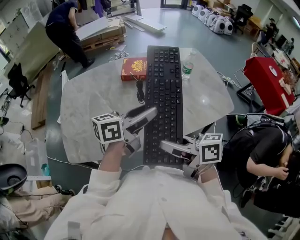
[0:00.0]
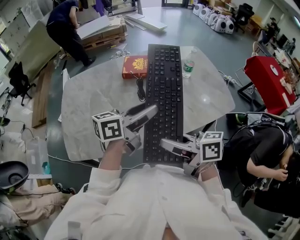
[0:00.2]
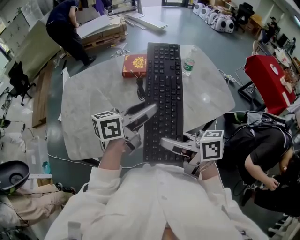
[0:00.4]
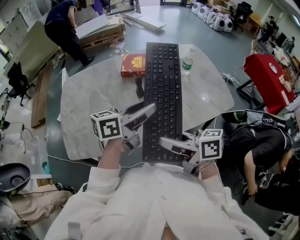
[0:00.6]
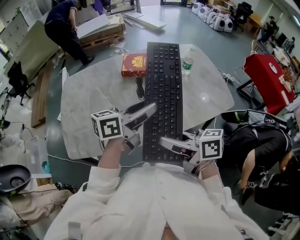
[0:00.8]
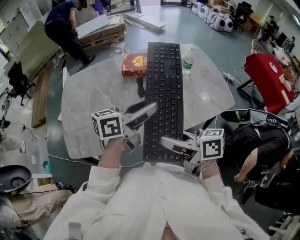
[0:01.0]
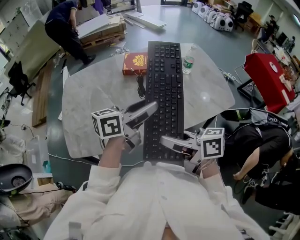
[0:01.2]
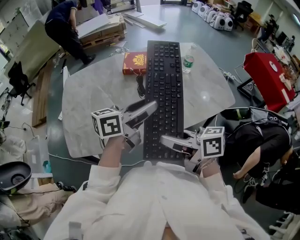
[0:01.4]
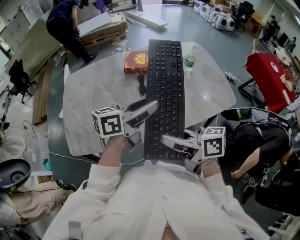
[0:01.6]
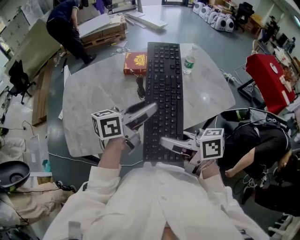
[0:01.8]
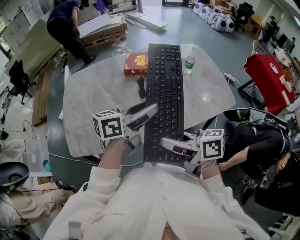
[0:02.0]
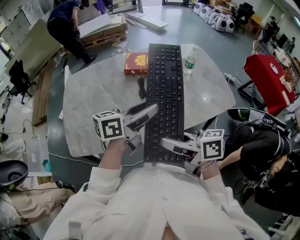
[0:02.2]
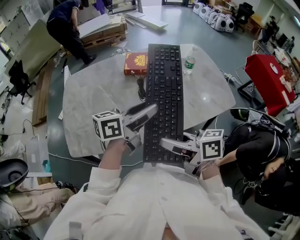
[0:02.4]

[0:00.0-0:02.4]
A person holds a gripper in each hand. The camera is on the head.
0:00.0 to 0:02.4: Both grippers stay put.

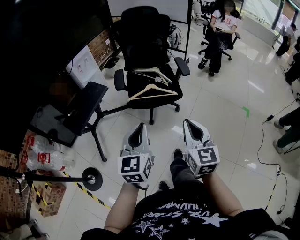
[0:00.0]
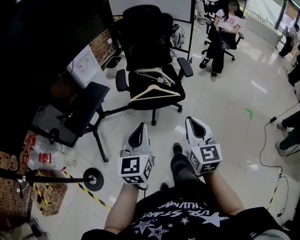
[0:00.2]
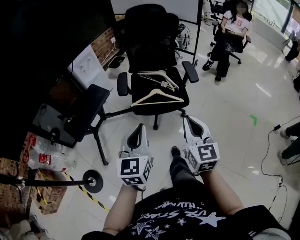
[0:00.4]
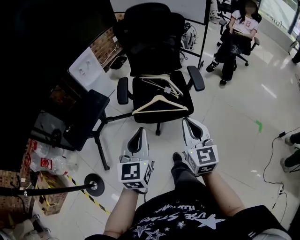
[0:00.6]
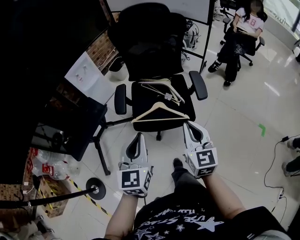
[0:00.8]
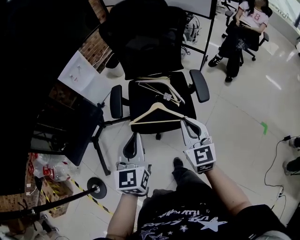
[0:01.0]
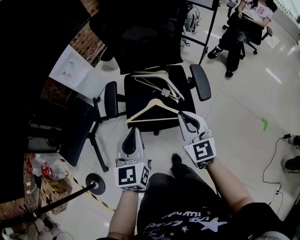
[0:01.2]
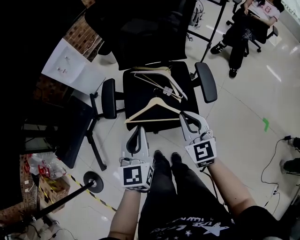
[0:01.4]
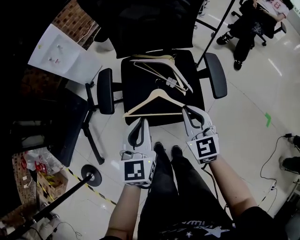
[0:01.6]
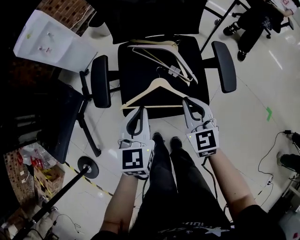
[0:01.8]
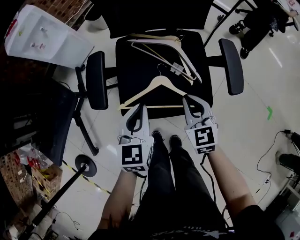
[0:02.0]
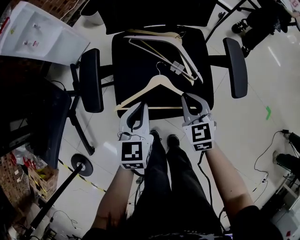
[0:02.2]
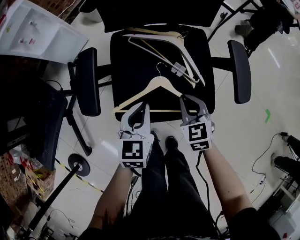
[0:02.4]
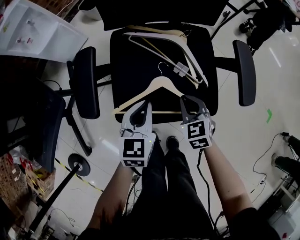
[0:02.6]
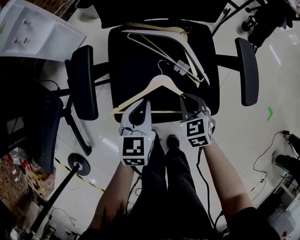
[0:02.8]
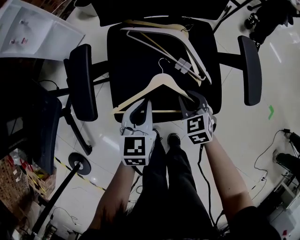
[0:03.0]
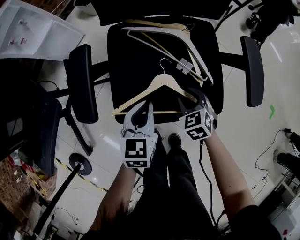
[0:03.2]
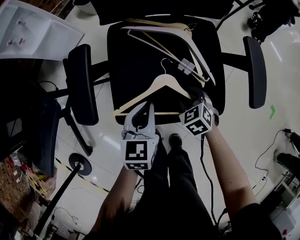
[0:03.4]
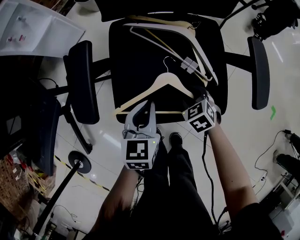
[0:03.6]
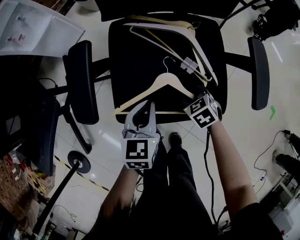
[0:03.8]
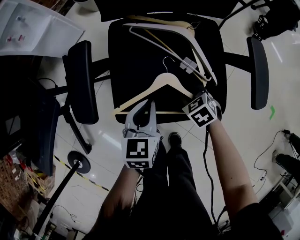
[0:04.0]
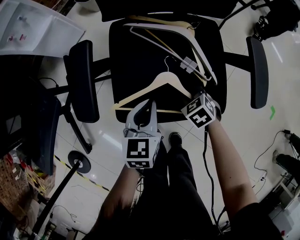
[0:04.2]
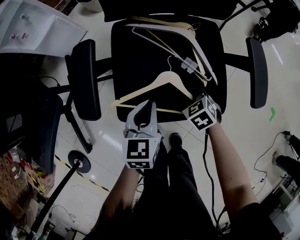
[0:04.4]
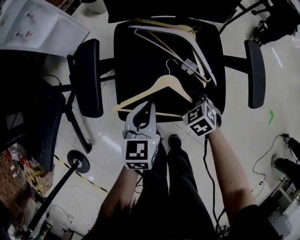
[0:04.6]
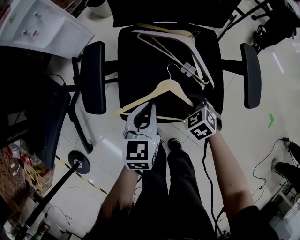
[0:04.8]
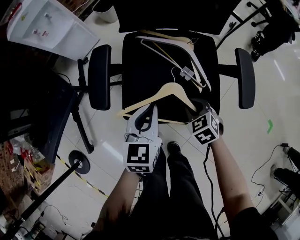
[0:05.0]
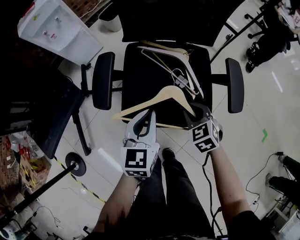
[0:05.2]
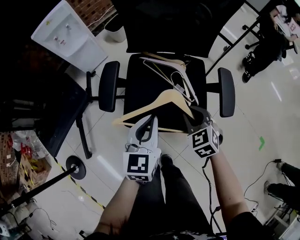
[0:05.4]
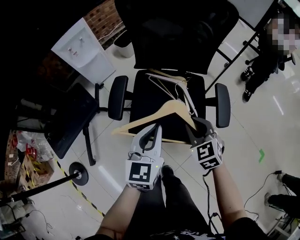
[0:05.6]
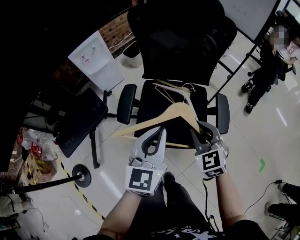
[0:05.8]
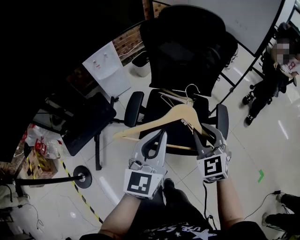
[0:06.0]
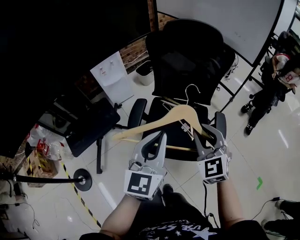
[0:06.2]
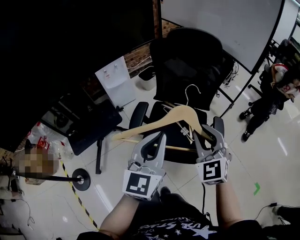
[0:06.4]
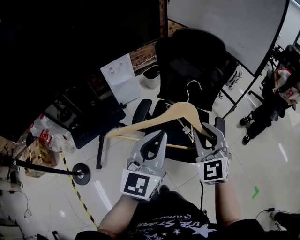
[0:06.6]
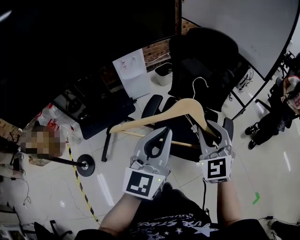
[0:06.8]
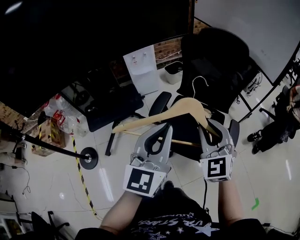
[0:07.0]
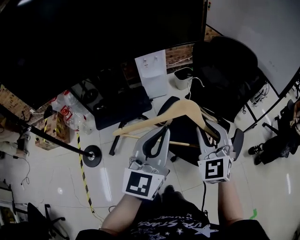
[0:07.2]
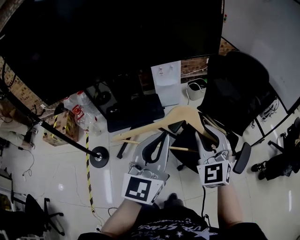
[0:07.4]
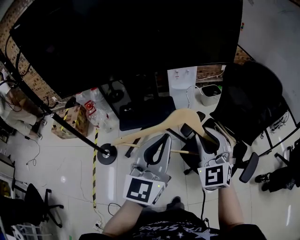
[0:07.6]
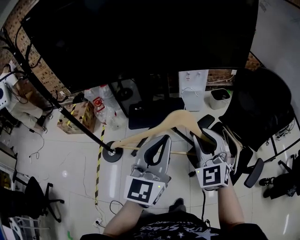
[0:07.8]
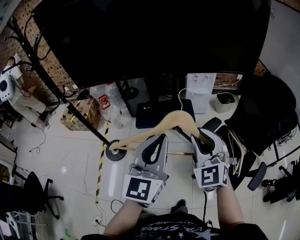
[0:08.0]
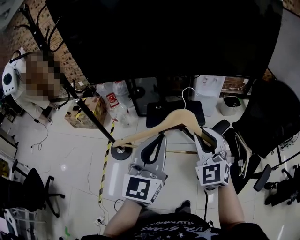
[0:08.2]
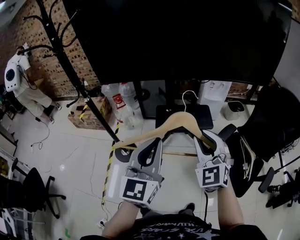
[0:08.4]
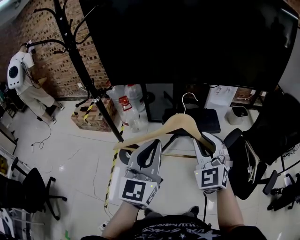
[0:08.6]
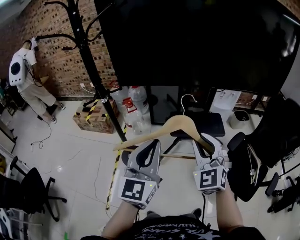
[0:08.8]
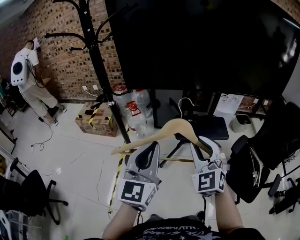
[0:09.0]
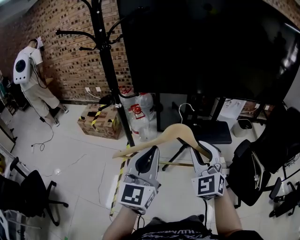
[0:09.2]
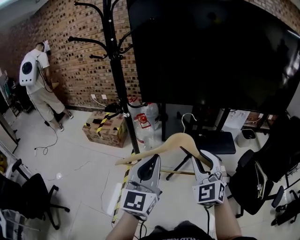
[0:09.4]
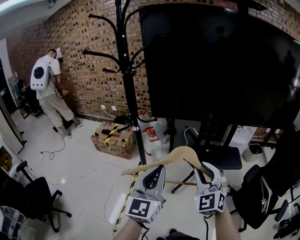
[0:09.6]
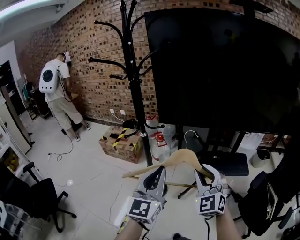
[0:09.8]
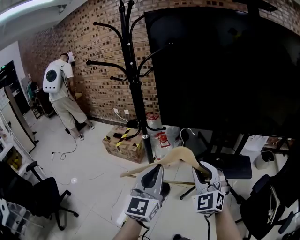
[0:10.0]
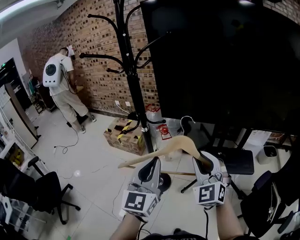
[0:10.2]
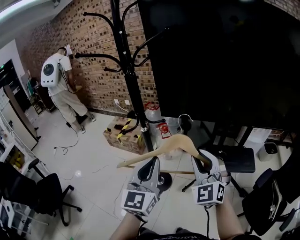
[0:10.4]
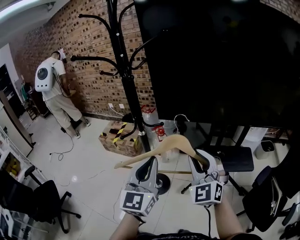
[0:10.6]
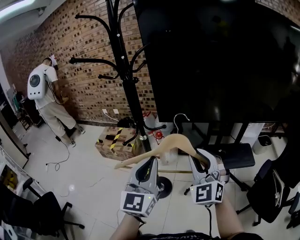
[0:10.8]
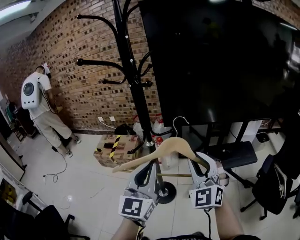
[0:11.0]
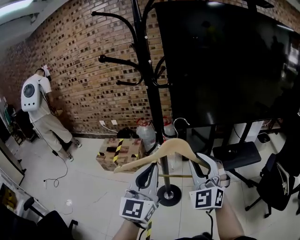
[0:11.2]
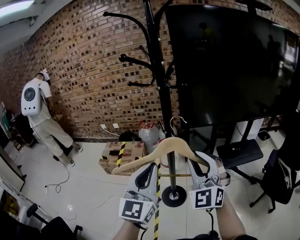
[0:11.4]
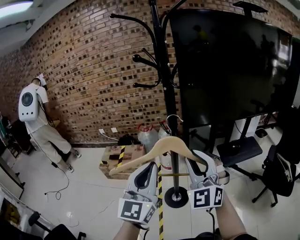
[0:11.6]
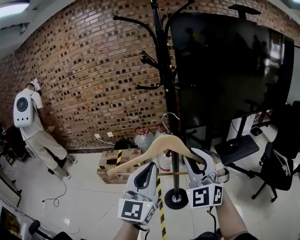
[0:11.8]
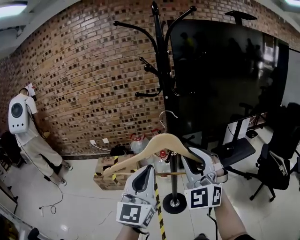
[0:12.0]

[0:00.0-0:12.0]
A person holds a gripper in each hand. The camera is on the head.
0:00.0 to 0:01.6: Both grippers travel together forward and downward, about 40 cm. The right gripper changes its angle by about 20 degrees.
0:01.6 to 0:03.0: Both grippers move downward, approximately 25 cm. The right gripper swivels about 30 degrees.
0:03.0 to 0:04.4: The right gripper is displaced downward by some 5 cm, and opens, then closes again.
0:04.4 to 0:06.0: The two grippers go some 40 cm upward. The left gripper changes its angle by some 30 degrees. Meanwhile the right gripper tilts its fingers about 50 degrees upward.
0:06.0 to 0:07.6: The left gripper changes place by about 25 cm, and swivels about 30 degrees; the right gripper moves some 25 cm, and turns by roughly 40 degrees.
0:07.6 to 0:09.0: Both grippers are carried to the left, roughly 40 cm.
0:09.0 to 0:10.4: The grippers both shift to the left and forward by some 15 cm.
0:10.4 to 0:12.0: Both grippers travel together to the left, roughly 30 cm. The left gripper changes its angle by roughly 20 degrees. Meanwhile the right gripper swivels approximately 30 degrees.

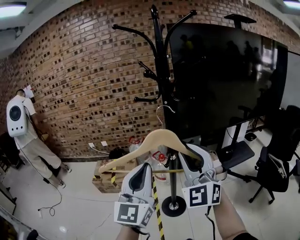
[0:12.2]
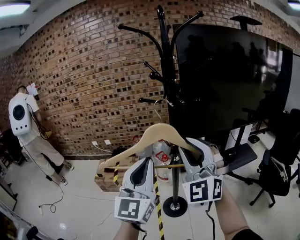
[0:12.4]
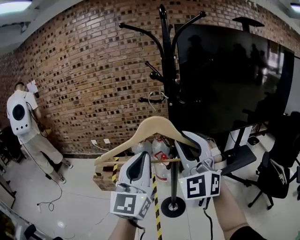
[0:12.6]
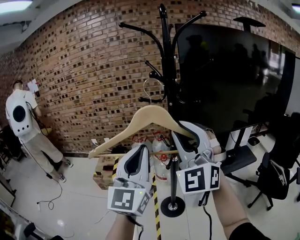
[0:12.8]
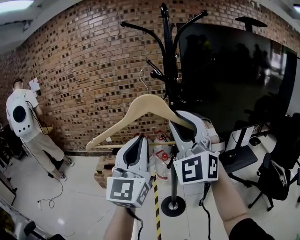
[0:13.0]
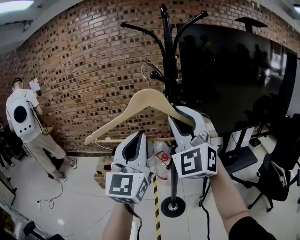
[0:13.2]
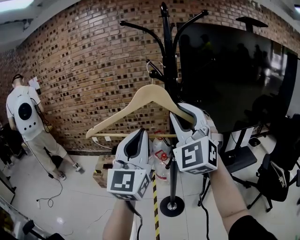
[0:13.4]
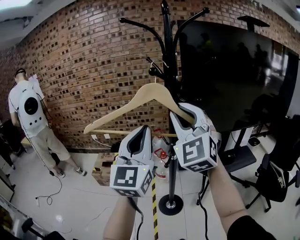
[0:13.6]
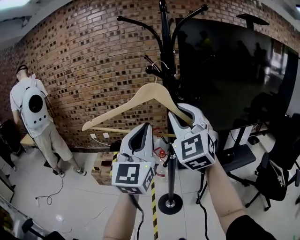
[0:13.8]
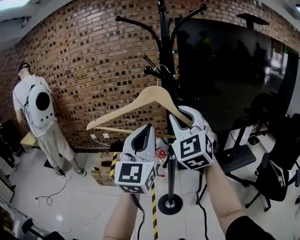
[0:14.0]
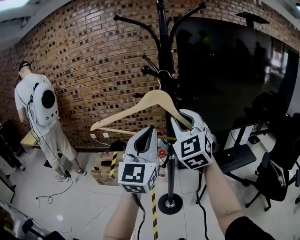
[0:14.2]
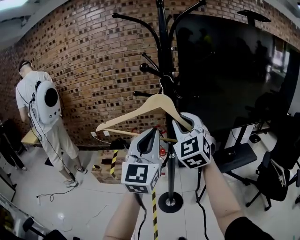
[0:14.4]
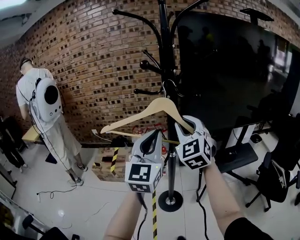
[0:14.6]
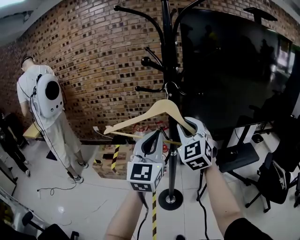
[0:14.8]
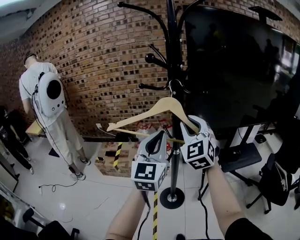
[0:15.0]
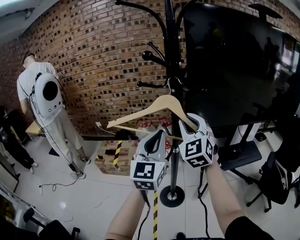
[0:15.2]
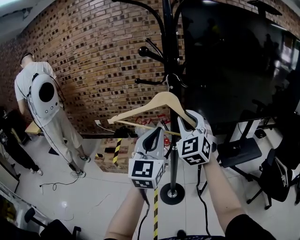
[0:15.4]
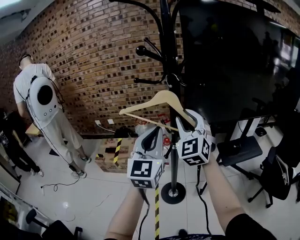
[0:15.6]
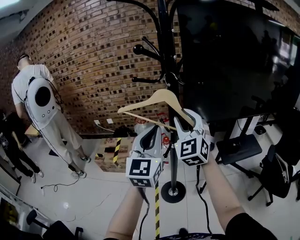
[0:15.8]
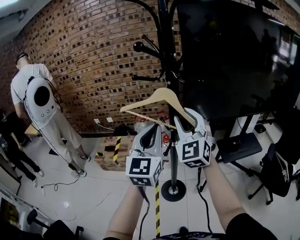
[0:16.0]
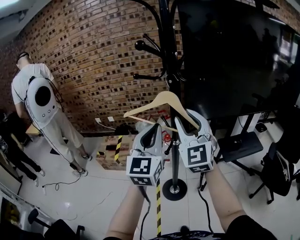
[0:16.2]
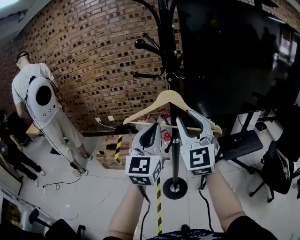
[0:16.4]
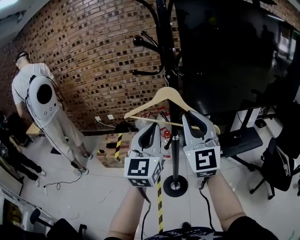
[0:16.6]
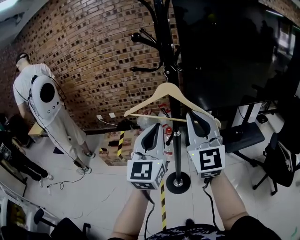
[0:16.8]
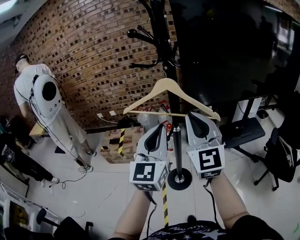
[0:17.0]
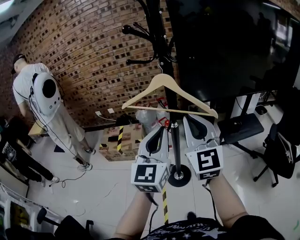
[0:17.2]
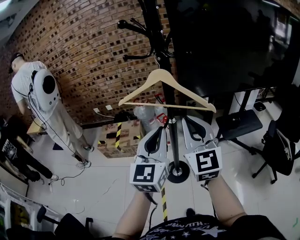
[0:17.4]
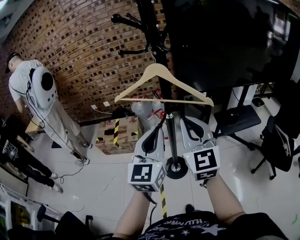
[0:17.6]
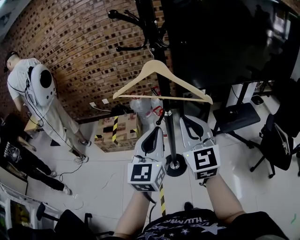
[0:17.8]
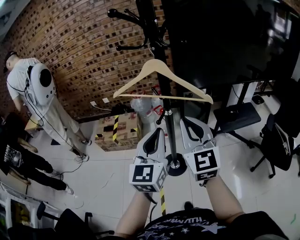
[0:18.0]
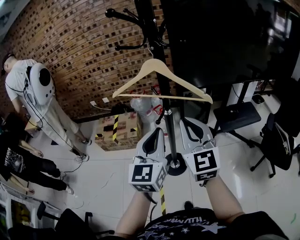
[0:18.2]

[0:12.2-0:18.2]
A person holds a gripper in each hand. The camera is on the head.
0:12.2 to 0:13.8: Both grippers travel together forward and upward, about 10 cm.
0:13.8 to 0:15.2: The right gripper goes approximately 15 cm downward and forward. Meanwhile the left gripper moves downward, about 10 cm.
0:15.2 to 0:16.6: The right gripper travels backward by approximately 10 cm, and turns by about 20 degrees.
0:16.6 to 0:18.2: The two grippers go some 10 cm downward and backward.

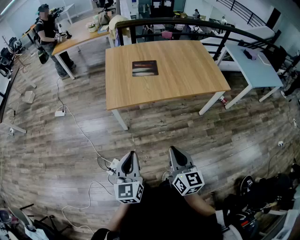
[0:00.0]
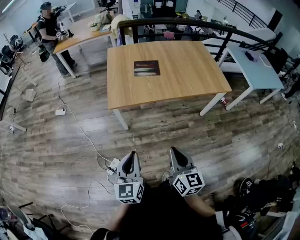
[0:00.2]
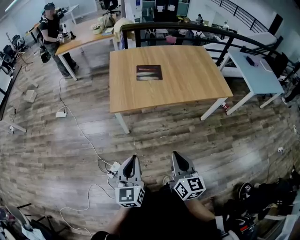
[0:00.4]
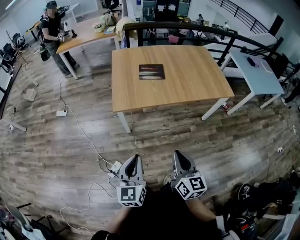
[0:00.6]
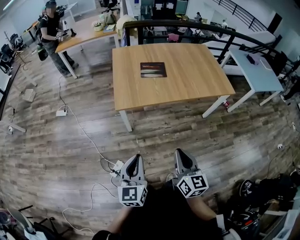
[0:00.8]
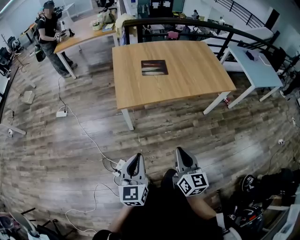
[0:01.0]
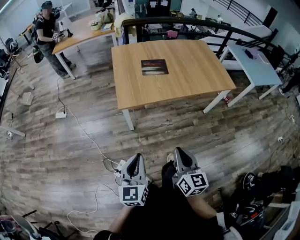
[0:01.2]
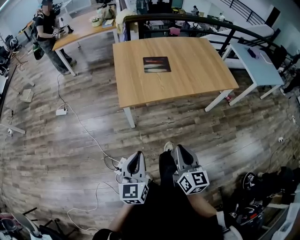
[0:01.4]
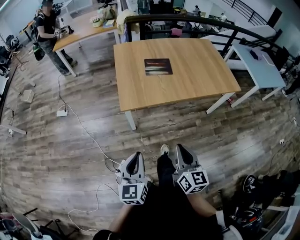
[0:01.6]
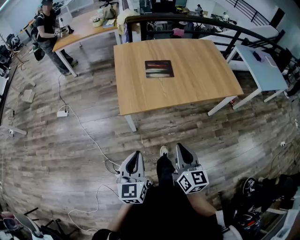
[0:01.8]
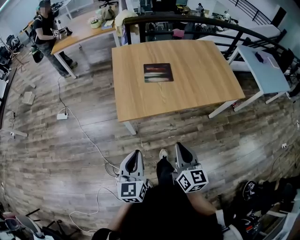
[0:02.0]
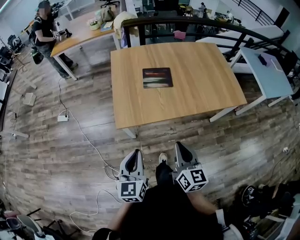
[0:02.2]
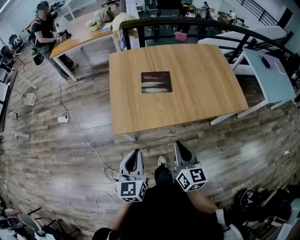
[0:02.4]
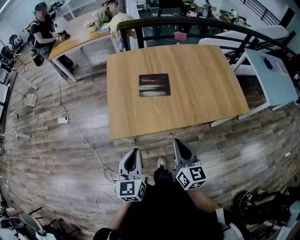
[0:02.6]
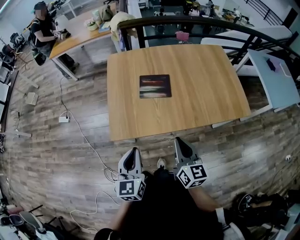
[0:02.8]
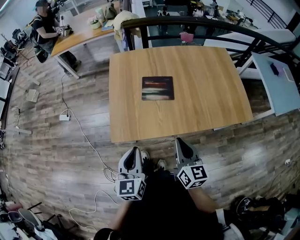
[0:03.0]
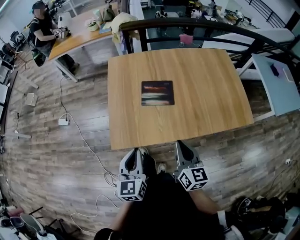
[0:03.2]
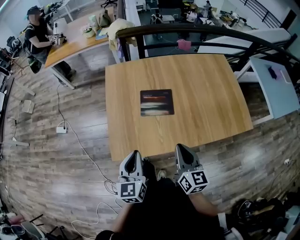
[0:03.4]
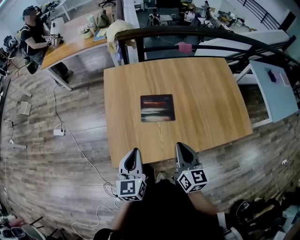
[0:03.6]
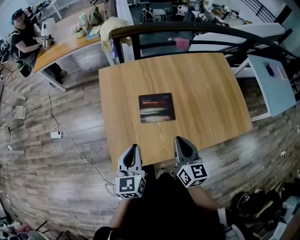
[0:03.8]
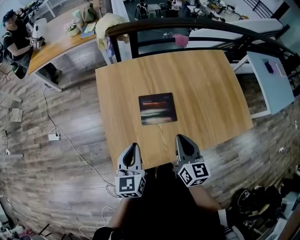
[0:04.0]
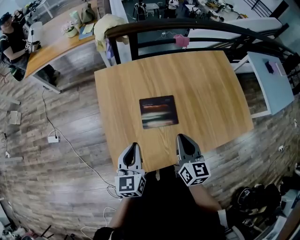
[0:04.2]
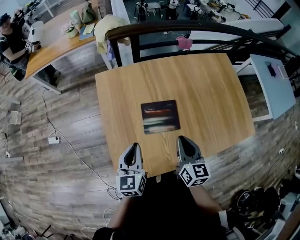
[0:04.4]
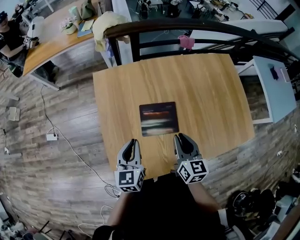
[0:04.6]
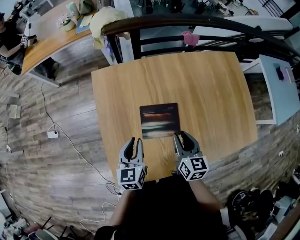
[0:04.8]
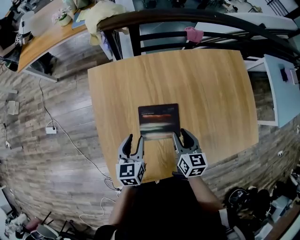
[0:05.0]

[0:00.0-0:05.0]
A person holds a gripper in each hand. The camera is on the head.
0:00.0 to 0:01.6: Both grippers move to the left and forward, approximately 10 cm.
0:01.6 to 0:03.4: The two grippers go roughly 40 cm forward.
0:03.4 to 0:05.0: Both grippers travel together forward and downward, roughly 30 cm. The left gripper opens, while the right gripper opens its fingers.
